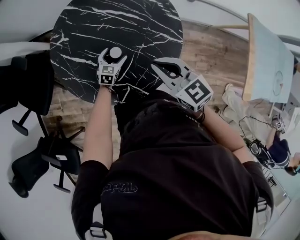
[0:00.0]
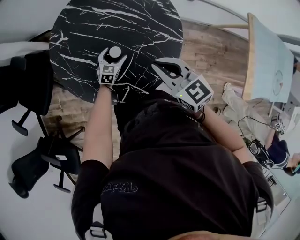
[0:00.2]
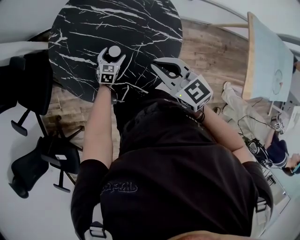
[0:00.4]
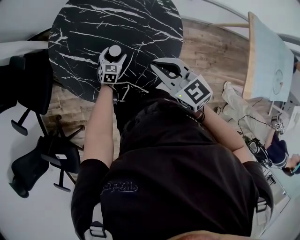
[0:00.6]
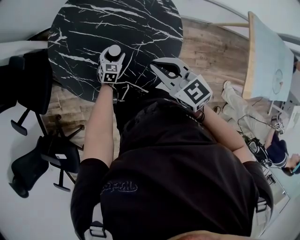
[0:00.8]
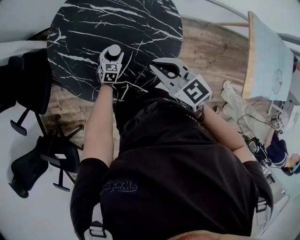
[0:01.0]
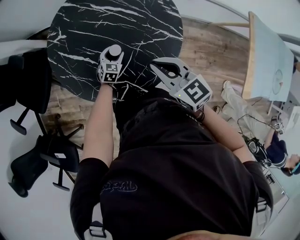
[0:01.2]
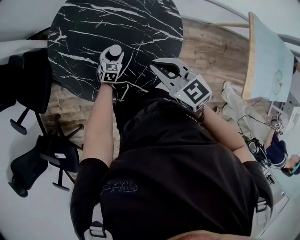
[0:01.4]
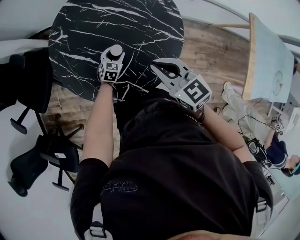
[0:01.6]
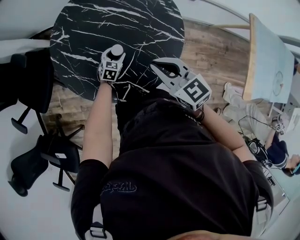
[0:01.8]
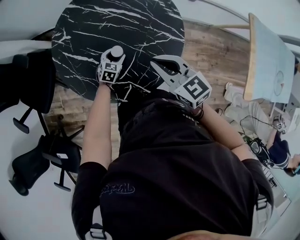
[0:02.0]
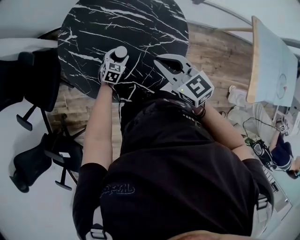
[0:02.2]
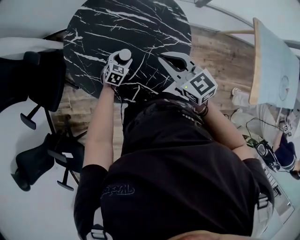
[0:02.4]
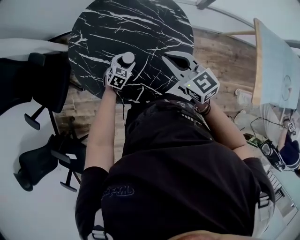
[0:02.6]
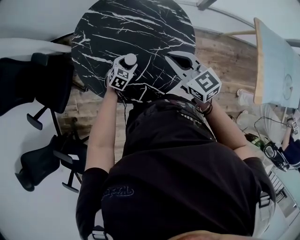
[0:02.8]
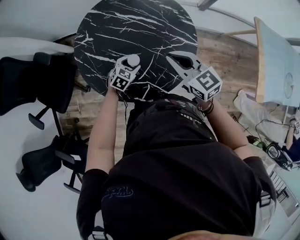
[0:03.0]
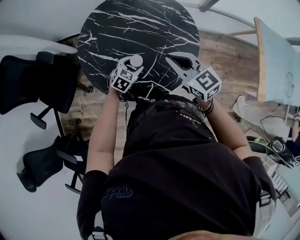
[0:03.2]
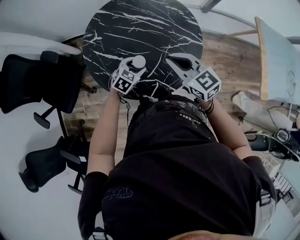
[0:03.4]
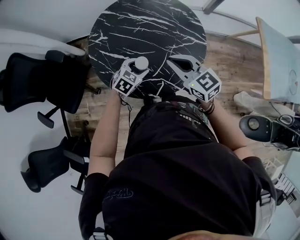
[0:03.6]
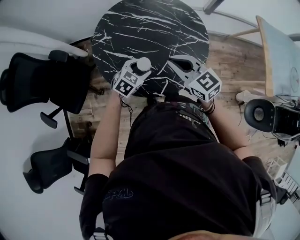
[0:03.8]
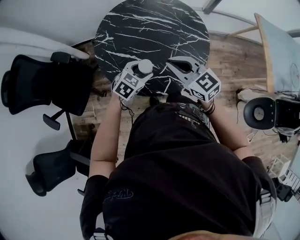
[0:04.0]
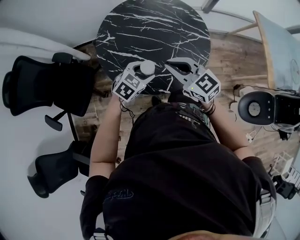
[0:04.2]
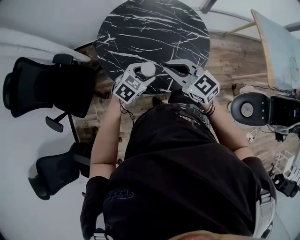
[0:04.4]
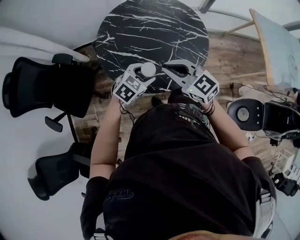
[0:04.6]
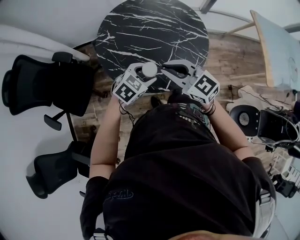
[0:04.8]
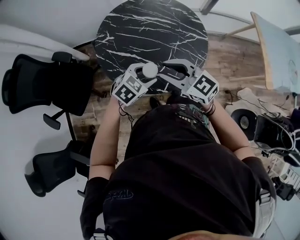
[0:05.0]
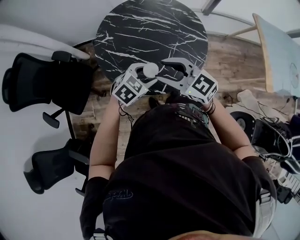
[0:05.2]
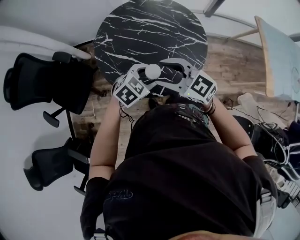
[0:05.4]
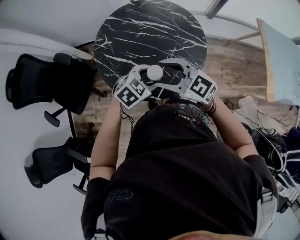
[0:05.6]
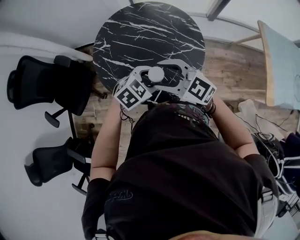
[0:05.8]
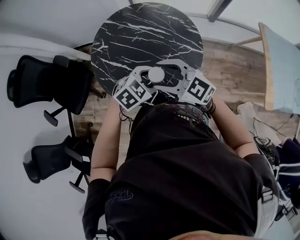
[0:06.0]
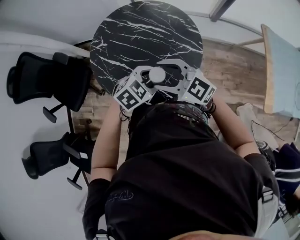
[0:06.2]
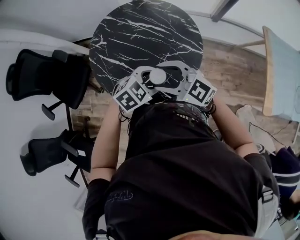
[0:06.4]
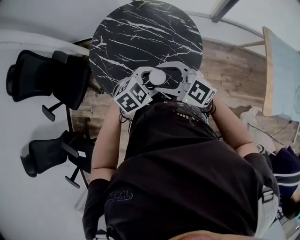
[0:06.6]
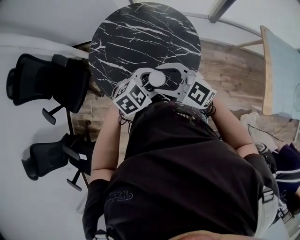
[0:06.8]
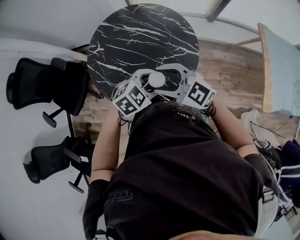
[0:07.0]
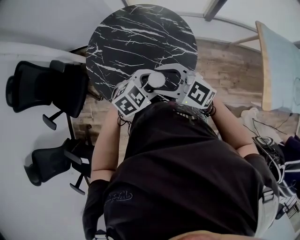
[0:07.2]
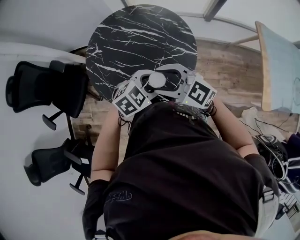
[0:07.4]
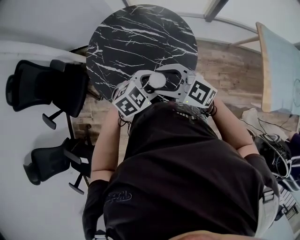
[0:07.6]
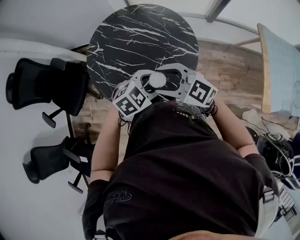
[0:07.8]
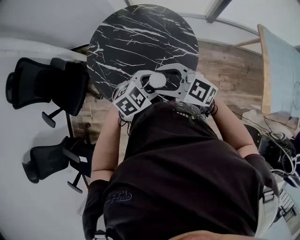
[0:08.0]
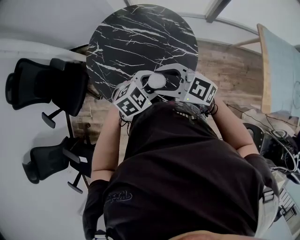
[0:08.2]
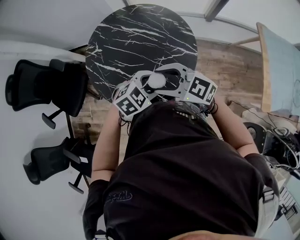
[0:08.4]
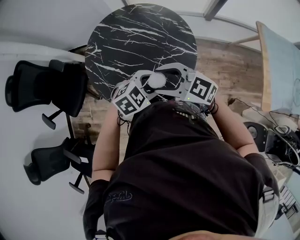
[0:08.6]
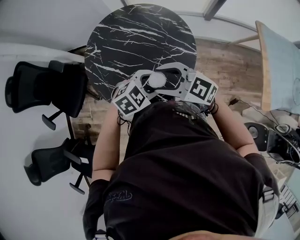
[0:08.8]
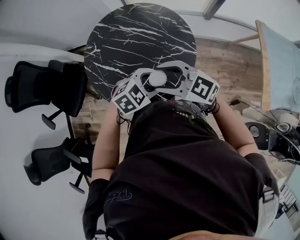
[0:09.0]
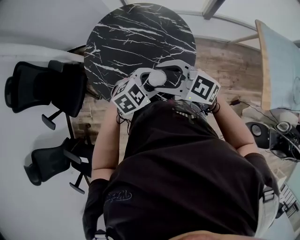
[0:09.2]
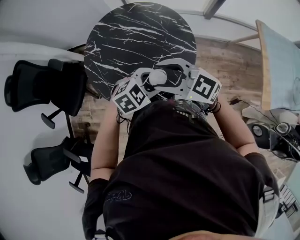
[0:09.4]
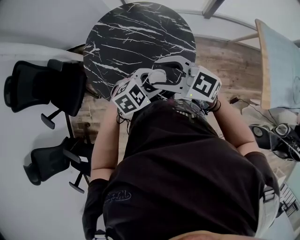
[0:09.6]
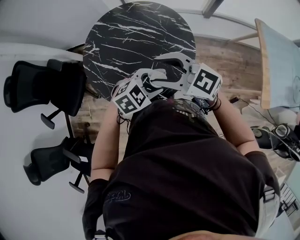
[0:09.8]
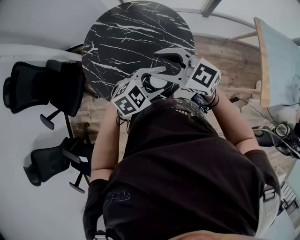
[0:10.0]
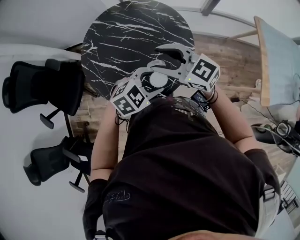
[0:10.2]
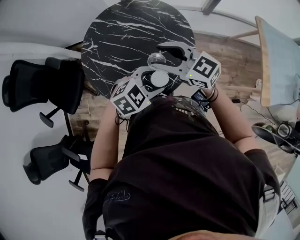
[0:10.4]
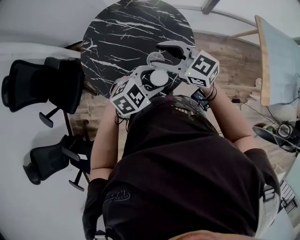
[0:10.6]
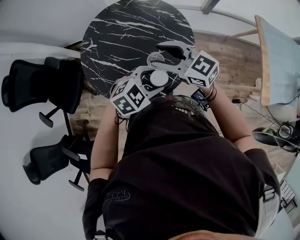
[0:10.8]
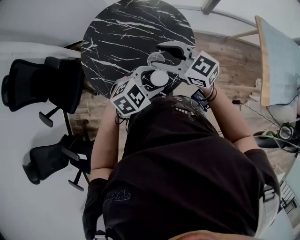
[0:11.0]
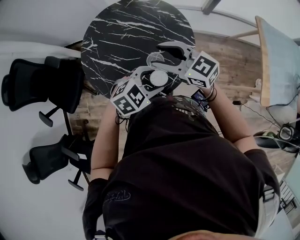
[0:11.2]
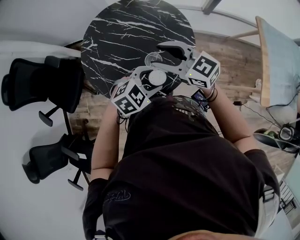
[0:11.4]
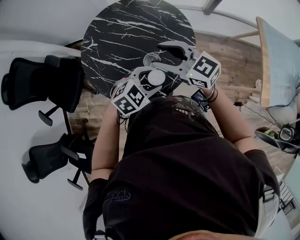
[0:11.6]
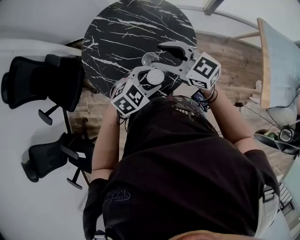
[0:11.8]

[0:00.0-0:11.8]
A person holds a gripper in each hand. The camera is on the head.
0:00.0 to 0:01.4: The left gripper closes.
0:01.4 to 0:03.0: The left gripper moves upward and backward, roughly 10 cm.
0:03.0 to 0:04.4: The left gripper shifts some 20 cm upward and backward; the right gripper shifts some 20 cm to the left and backward.
0:04.4 to 0:06.0: The left gripper ends up about 15 cm from where it was; the right gripper moves about 10 cm, turns by some 30 degrees, and opens its fingers.
0:06.0 to 0:08.8: There are only small adjustments of the grippers.
0:08.8 to 0:10.4: The right gripper changes place by approximately 5 cm.
0:10.4 to 0:11.8: There are only small adjustments of the grippers.

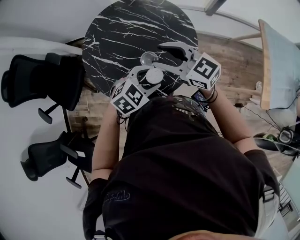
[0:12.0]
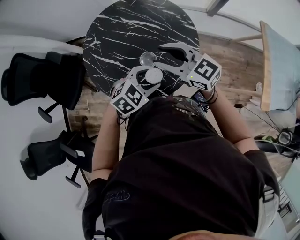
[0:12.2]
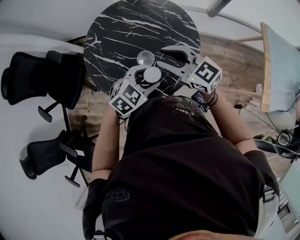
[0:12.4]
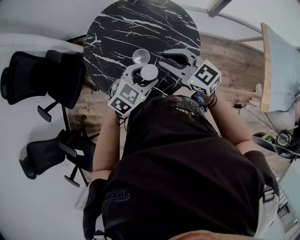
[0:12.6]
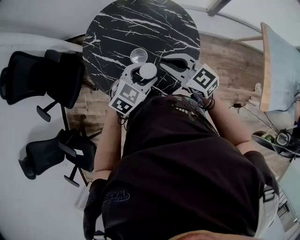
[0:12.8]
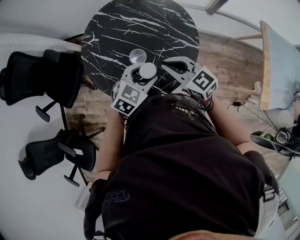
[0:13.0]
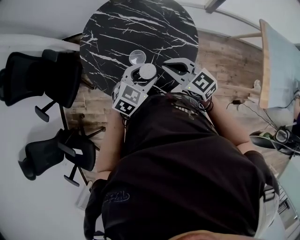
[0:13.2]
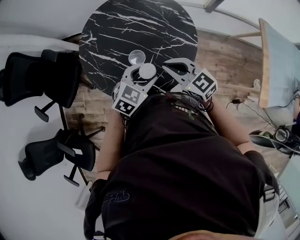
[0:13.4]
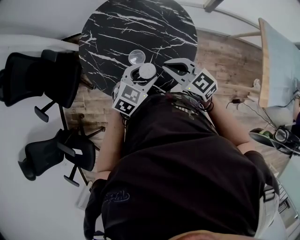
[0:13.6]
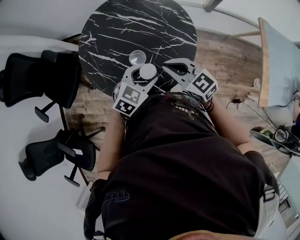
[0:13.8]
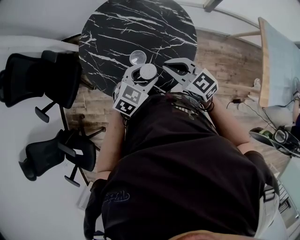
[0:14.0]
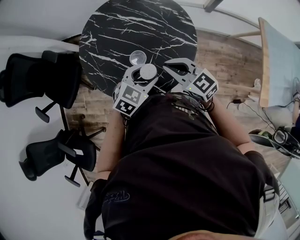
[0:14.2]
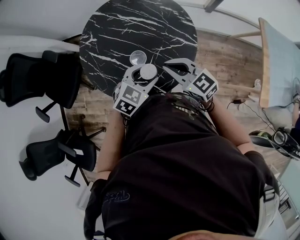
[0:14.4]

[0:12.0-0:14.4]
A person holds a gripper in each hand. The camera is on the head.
0:12.0 to 0:13.2: The right gripper moves downward, approximately 5 cm, and closes its fingers.
0:13.2 to 0:14.4: The two grippers keep their place.

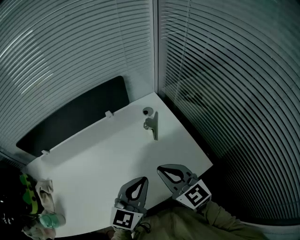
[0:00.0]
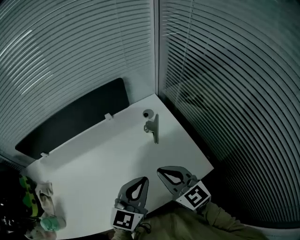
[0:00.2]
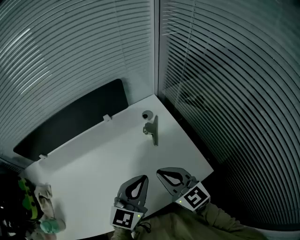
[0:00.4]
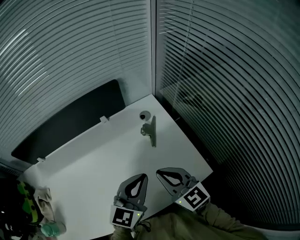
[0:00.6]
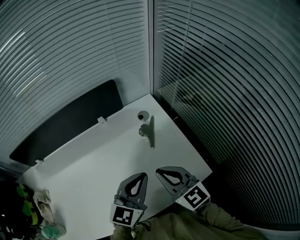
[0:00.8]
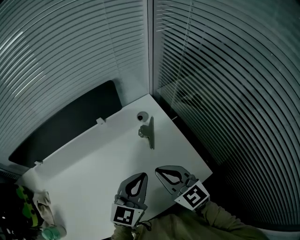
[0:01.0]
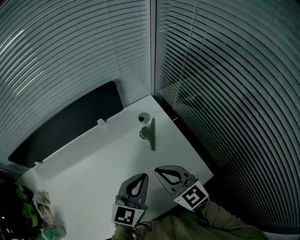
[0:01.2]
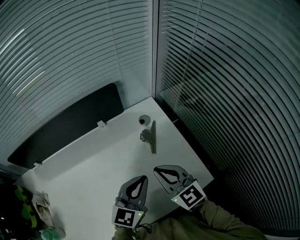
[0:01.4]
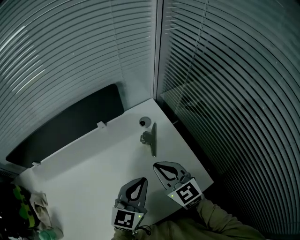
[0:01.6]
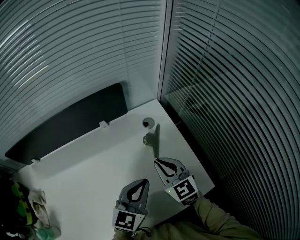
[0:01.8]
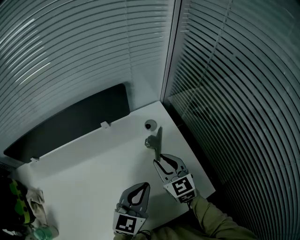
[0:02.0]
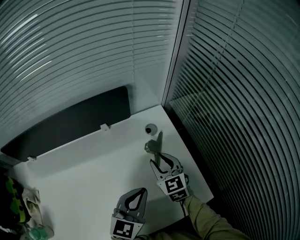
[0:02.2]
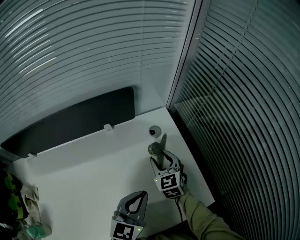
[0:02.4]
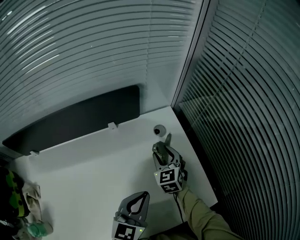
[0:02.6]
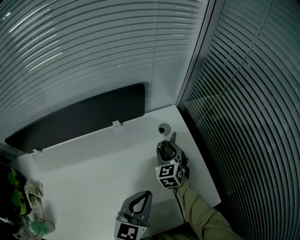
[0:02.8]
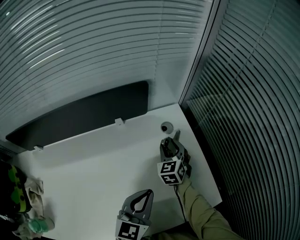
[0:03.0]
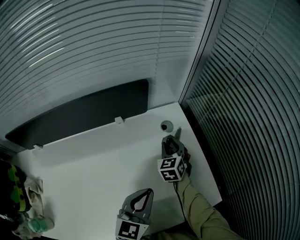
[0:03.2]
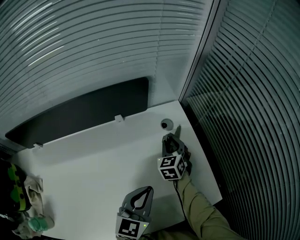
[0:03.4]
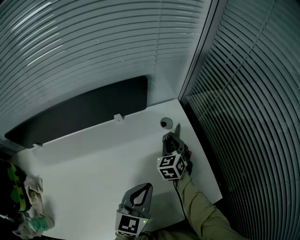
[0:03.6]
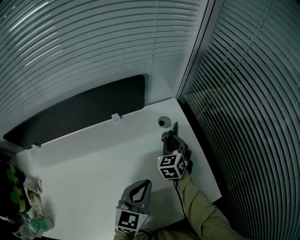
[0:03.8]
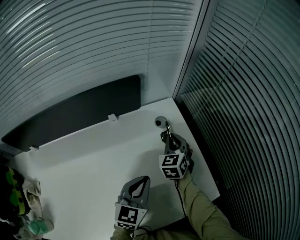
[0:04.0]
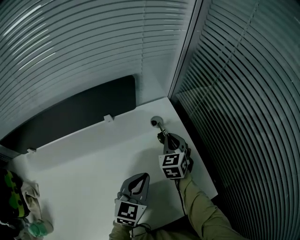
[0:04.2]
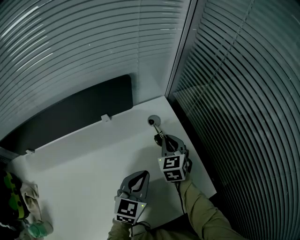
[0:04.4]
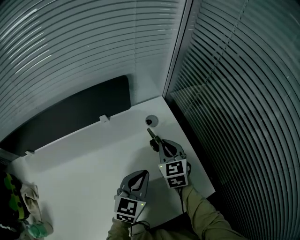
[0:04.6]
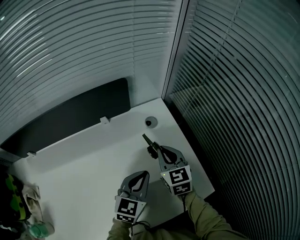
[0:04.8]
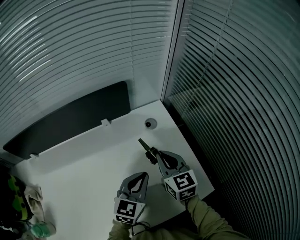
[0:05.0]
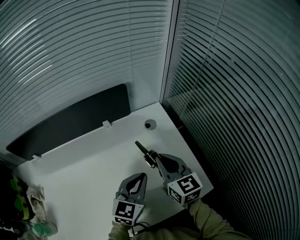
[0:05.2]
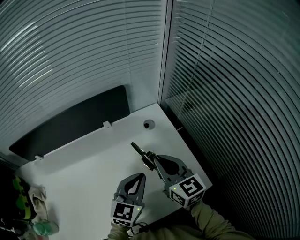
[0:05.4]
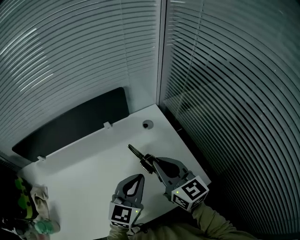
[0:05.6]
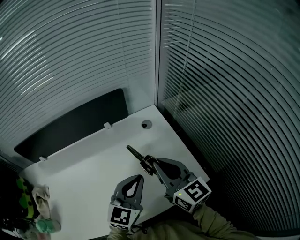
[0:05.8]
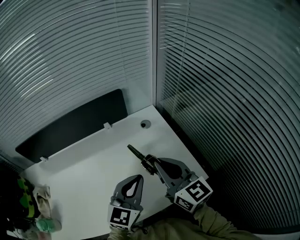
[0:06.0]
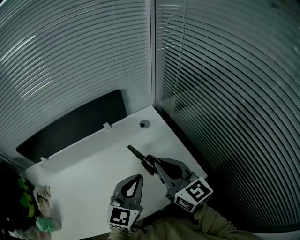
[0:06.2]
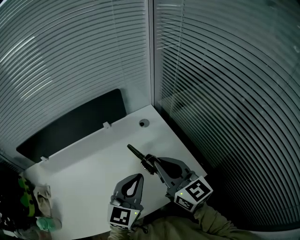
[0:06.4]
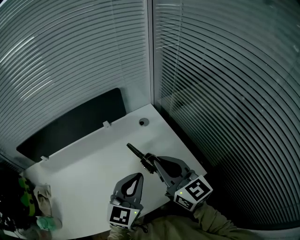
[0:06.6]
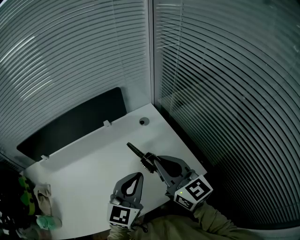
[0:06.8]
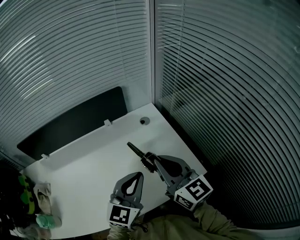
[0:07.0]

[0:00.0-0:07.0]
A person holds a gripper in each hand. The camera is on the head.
0:00.0 to 0:01.4: Both grippers travel together forward and downward, roughly 15 cm.
0:01.4 to 0:02.8: The right gripper goes approximately 25 cm forward and downward, changes its angle by roughly 30 degrees, and opens up.
0:02.8 to 0:04.2: The right gripper shifts by about 5 cm, and closes. Meanwhile the left gripper moves some 5 cm.
0:04.2 to 0:05.6: The right gripper travels backward and upward by roughly 25 cm, and rotates about 50 degrees. Meanwhile the left gripper travels upward and backward by some 10 cm.
0:05.6 to 0:07.0: The grippers both shift backward by some 5 cm.

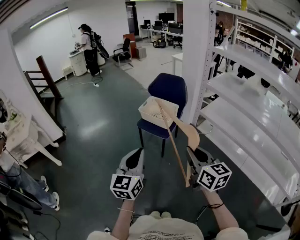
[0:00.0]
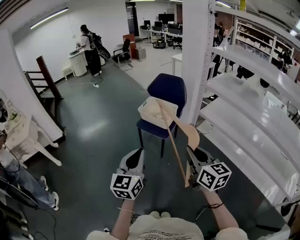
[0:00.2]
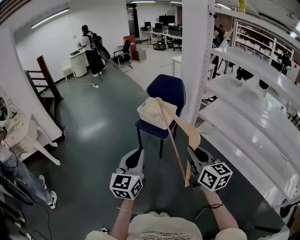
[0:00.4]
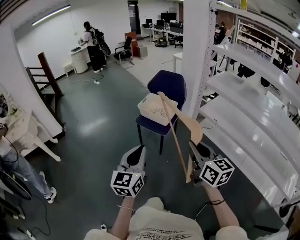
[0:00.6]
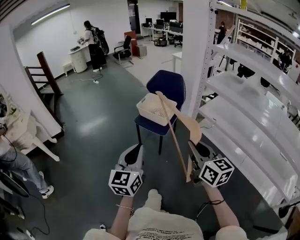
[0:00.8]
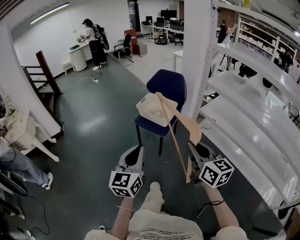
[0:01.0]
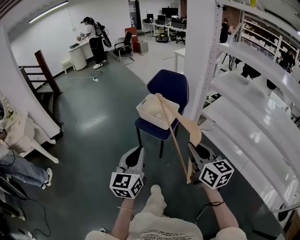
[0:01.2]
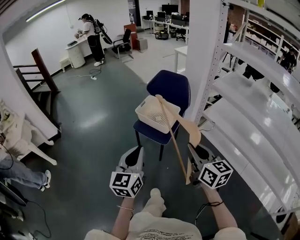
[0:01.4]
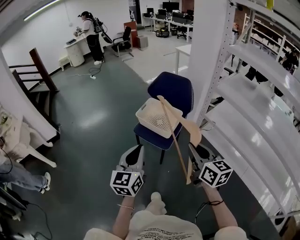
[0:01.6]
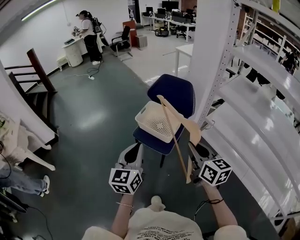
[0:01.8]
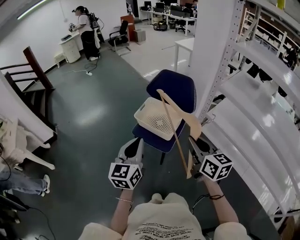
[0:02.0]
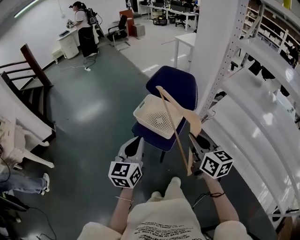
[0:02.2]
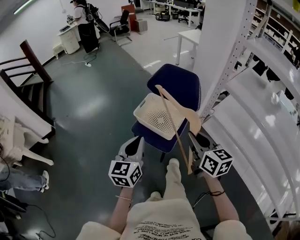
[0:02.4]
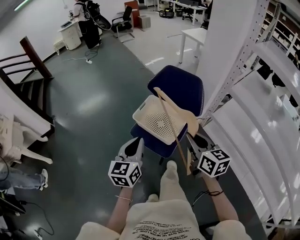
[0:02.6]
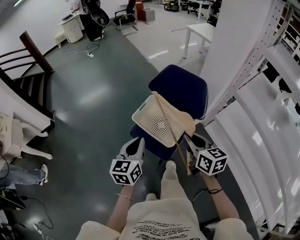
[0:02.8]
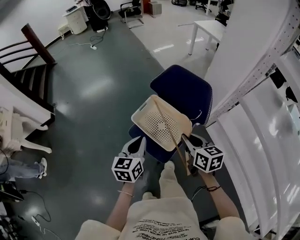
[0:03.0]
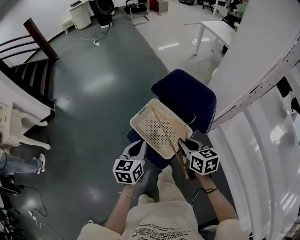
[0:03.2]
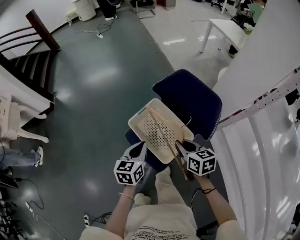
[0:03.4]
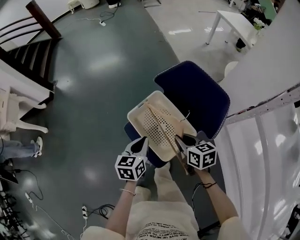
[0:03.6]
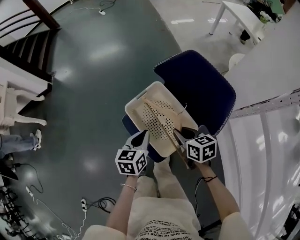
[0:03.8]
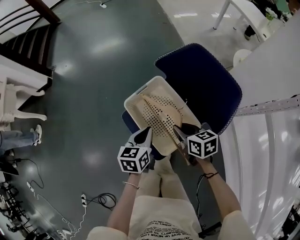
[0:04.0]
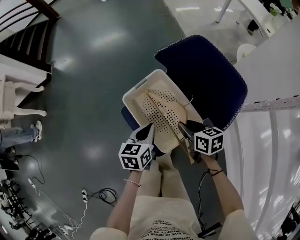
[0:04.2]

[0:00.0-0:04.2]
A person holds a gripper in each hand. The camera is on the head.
0:00.0 to 0:01.4: Both grippers travel together forward, roughly 15 cm.
0:01.4 to 0:02.8: Both grippers travel together forward, some 35 cm.
0:02.8 to 0:04.2: The left gripper is displaced downward, forward and to the right by about 25 cm, and changes its angle by approximately 30 degrees, while the right gripper shifts approximately 30 cm downward and forward, and rotates some 40 degrees.
